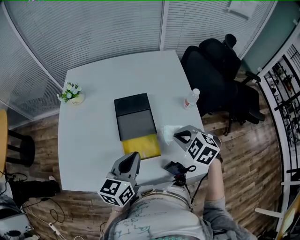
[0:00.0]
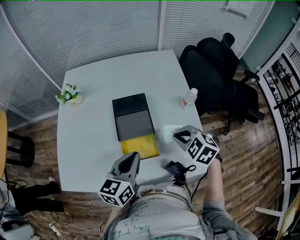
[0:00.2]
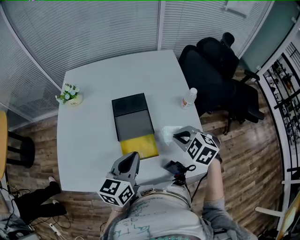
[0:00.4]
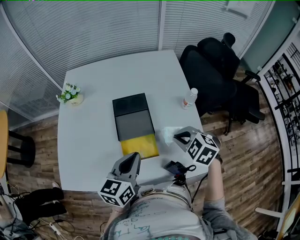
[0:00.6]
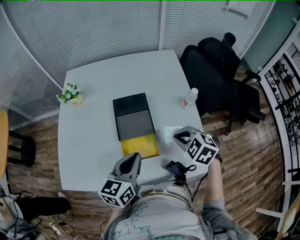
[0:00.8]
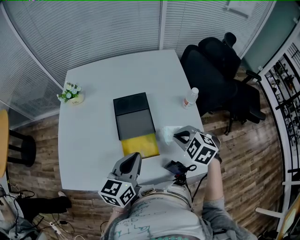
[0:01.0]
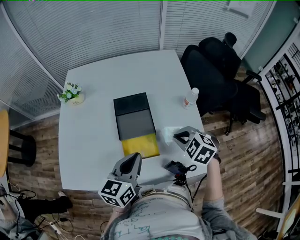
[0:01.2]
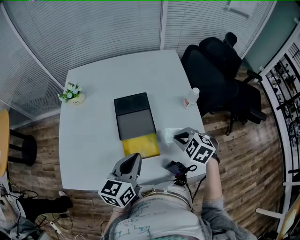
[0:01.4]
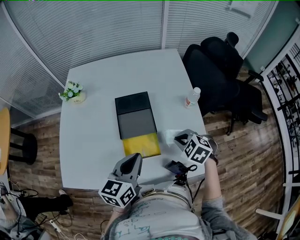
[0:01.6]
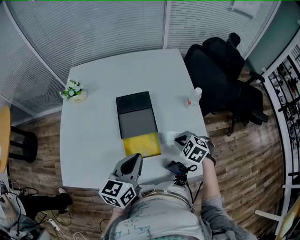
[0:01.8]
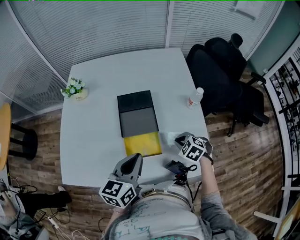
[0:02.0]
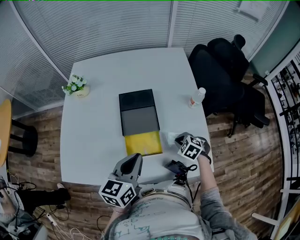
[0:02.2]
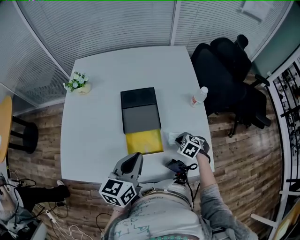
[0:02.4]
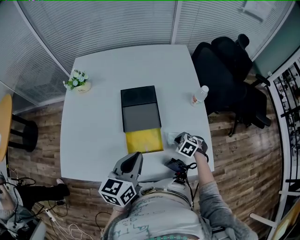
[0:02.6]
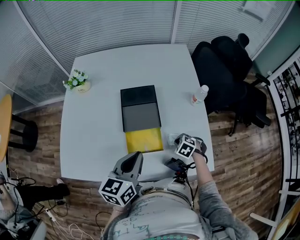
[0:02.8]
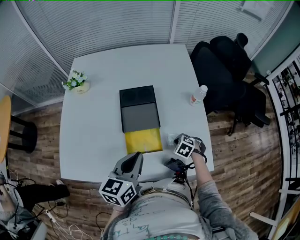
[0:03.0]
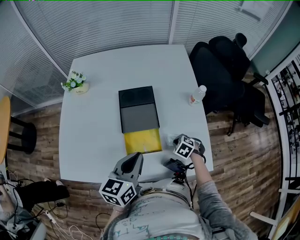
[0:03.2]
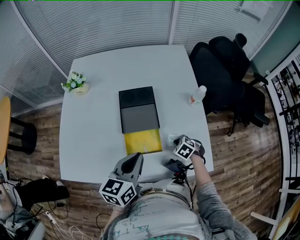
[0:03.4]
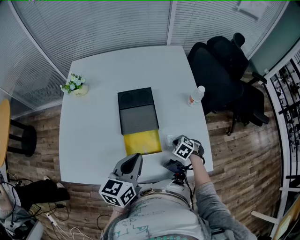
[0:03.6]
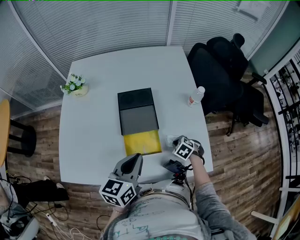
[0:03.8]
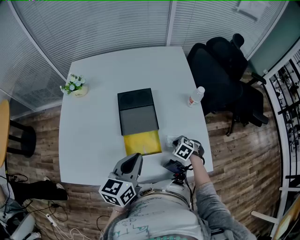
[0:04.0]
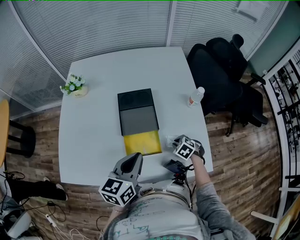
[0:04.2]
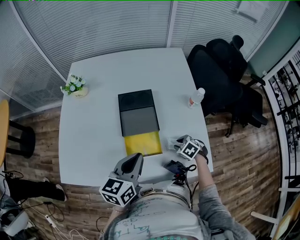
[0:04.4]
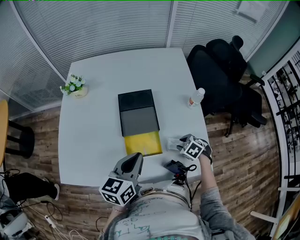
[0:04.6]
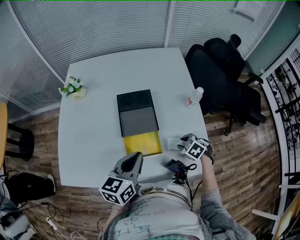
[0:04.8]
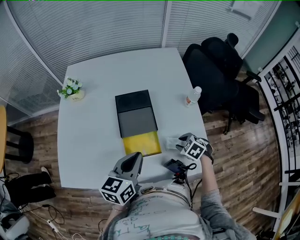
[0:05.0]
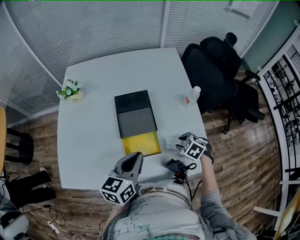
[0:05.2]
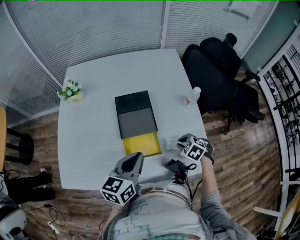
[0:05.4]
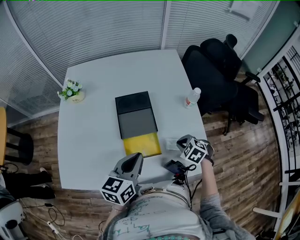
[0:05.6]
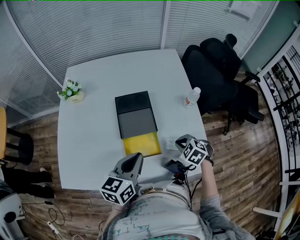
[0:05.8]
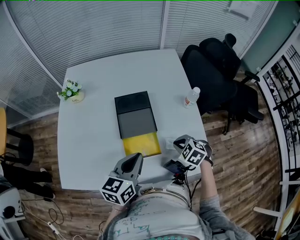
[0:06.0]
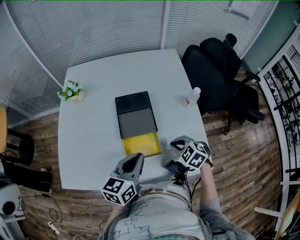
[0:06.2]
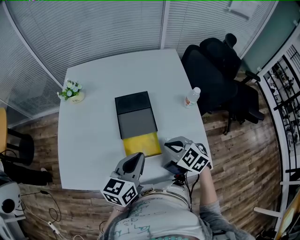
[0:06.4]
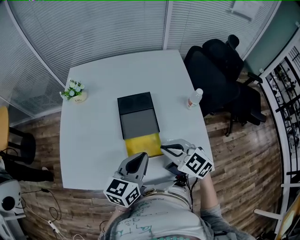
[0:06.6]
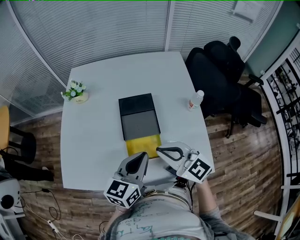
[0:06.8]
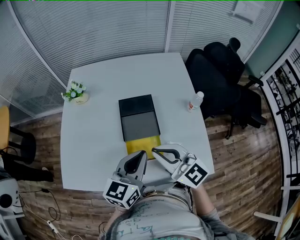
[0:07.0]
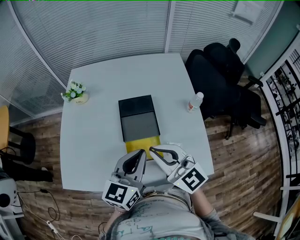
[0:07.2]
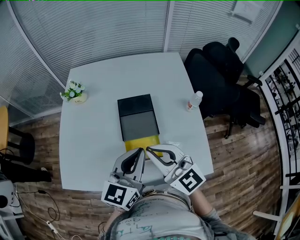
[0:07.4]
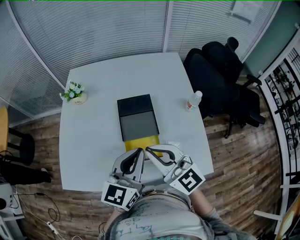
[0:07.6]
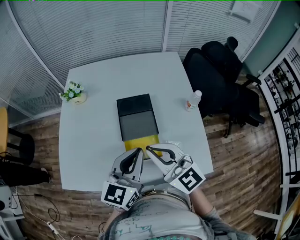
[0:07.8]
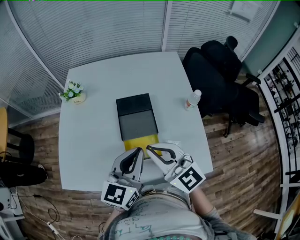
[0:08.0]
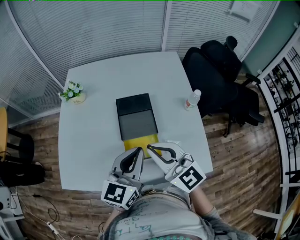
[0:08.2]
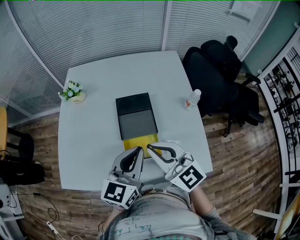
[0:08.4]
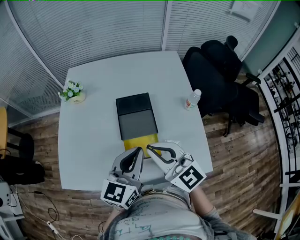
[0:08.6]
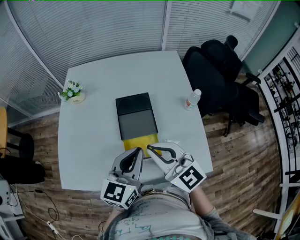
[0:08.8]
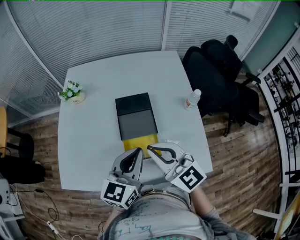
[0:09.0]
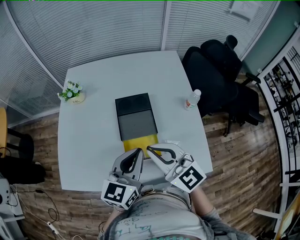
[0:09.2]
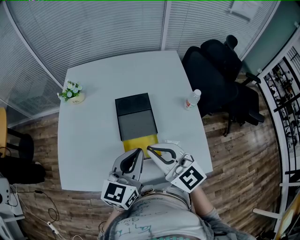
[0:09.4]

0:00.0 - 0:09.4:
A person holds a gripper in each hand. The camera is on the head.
0:00.0 - 0:01.6: The right gripper travels downward by some 5 cm.
0:01.6 - 0:03.2: The right gripper moves downward, roughly 15 cm.
0:03.2 - 0:04.8: The right gripper is displaced upward by approximately 5 cm, and opens its fingers.
0:04.8 - 0:06.2: The right gripper is displaced upward and to the left by about 10 cm, and closes up.
0:06.2 - 0:07.8: The left gripper moves upward, approximately 10 cm. Meanwhile the right gripper shifts about 25 cm upward and to the left, and tilts its fingers some 50 degrees upward.
0:07.8 - 0:09.4: There are only small adjustments of the grippers.

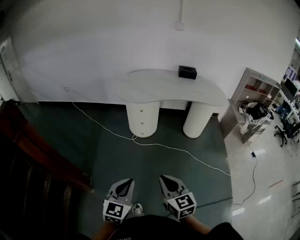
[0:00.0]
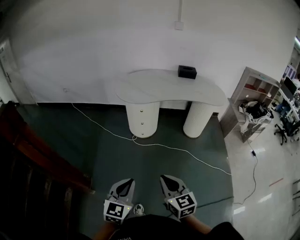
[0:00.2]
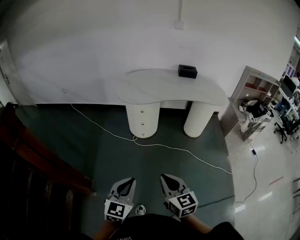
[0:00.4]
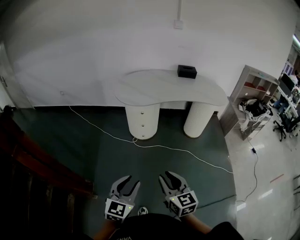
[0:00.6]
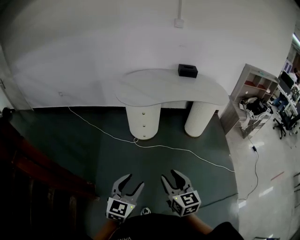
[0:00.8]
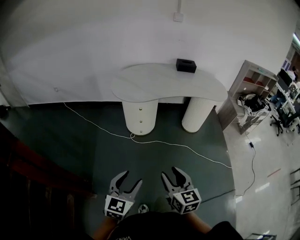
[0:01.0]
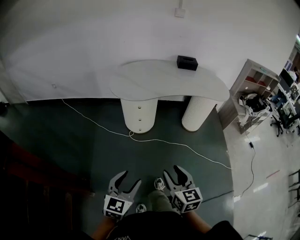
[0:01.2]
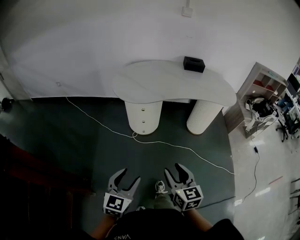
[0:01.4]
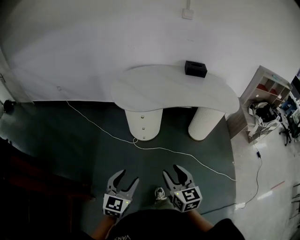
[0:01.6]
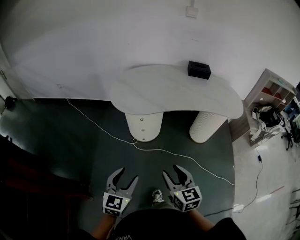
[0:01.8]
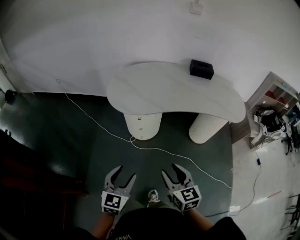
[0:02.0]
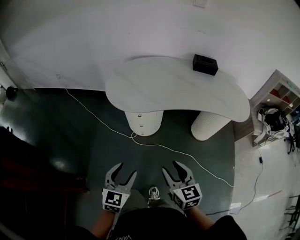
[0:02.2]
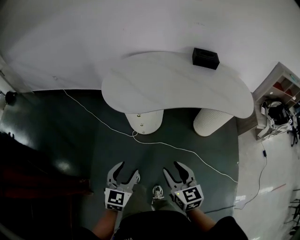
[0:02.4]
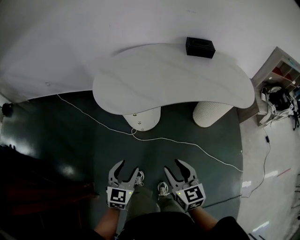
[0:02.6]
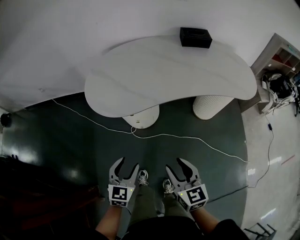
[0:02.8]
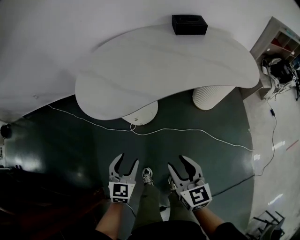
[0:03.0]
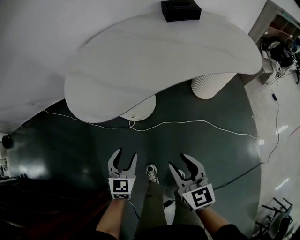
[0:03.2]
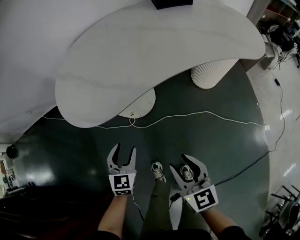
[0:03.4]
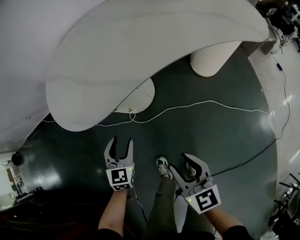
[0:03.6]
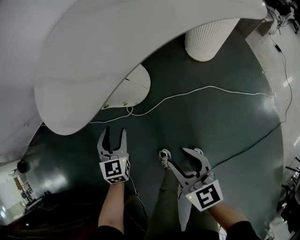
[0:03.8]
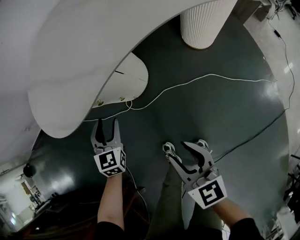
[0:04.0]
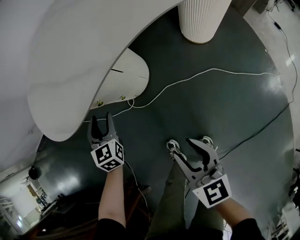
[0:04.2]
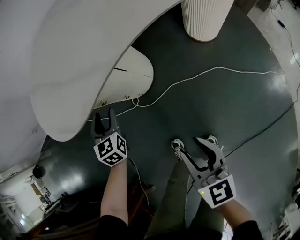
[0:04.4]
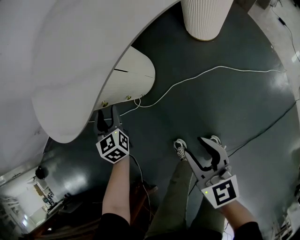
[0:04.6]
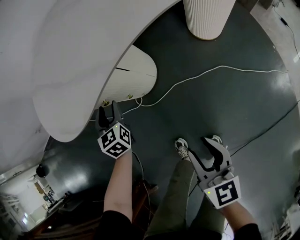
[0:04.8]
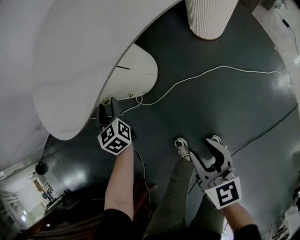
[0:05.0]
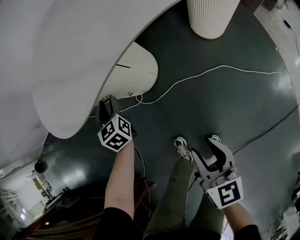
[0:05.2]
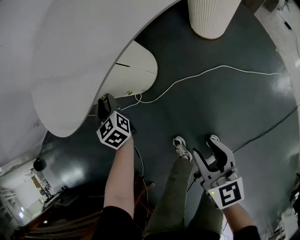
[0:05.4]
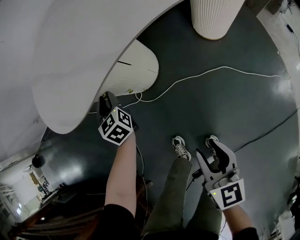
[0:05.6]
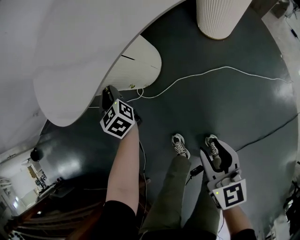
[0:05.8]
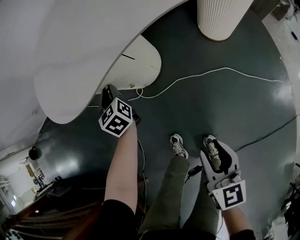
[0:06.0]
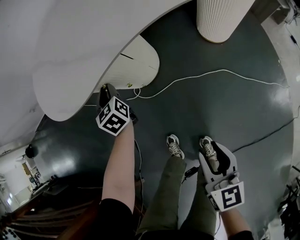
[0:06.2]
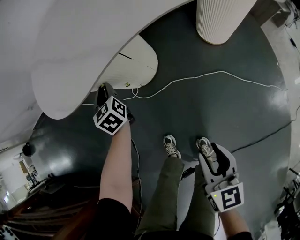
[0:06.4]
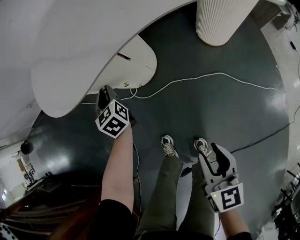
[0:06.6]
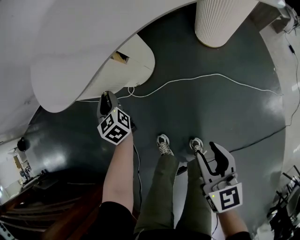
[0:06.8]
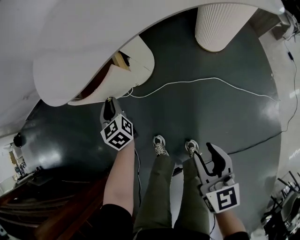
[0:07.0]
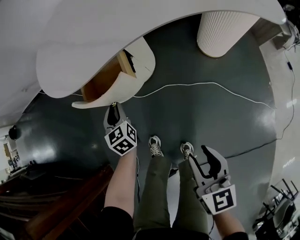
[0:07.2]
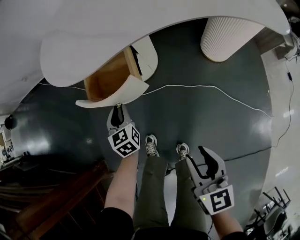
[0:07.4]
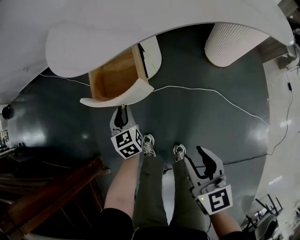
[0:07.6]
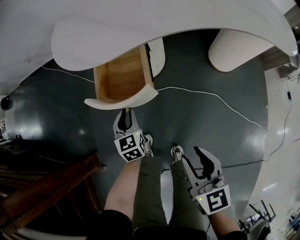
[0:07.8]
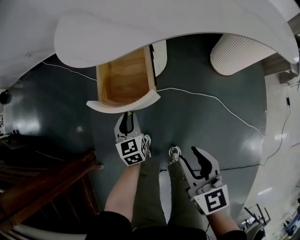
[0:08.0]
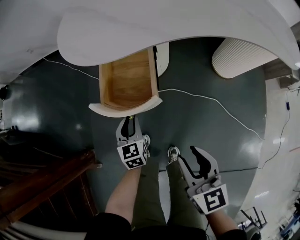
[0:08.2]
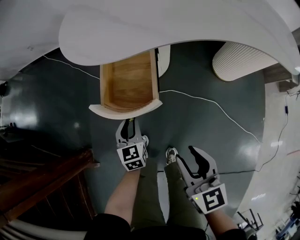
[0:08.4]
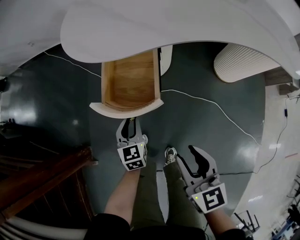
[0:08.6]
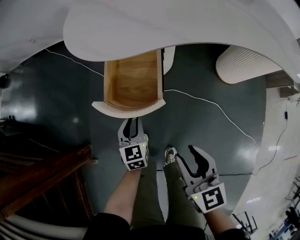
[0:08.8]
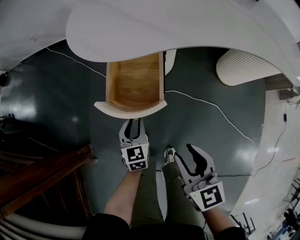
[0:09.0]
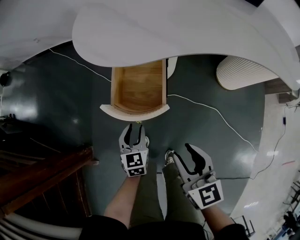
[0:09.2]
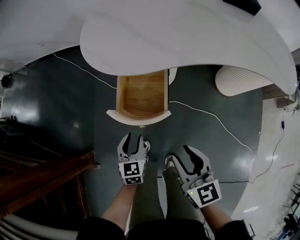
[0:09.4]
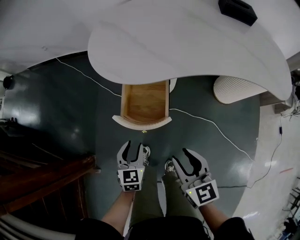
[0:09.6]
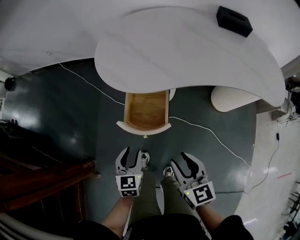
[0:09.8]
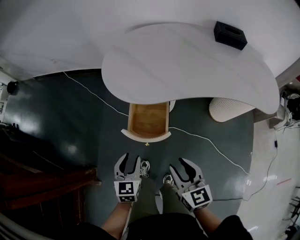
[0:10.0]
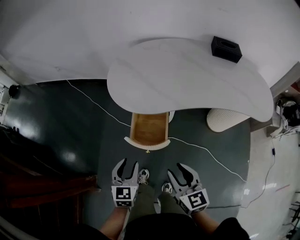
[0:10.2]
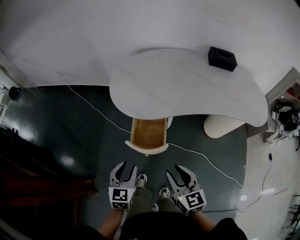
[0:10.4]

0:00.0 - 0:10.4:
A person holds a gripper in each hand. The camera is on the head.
0:00.0 - 0:01.4: Both grippers move forward, approximately 20 cm. The right gripper opens. Meanwhile the left gripper opens its fingers.
0:01.4 - 0:03.0: The left gripper is displaced forward and downward by roughly 40 cm. Meanwhile the right gripper goes roughly 30 cm forward.
0:03.0 - 0:04.4: The left gripper is displaced forward and downward by about 30 cm; the right gripper shifts about 20 cm downward.
0:04.4 - 0:06.0: The right gripper shifts by roughly 5 cm; the left gripper swivels some 20 degrees, and closes.
0:06.0 - 0:07.4: The left gripper is displaced backward by approximately 15 cm. Meanwhile the right gripper travels upward and backward by about 5 cm.
0:07.4 - 0:09.0: The left gripper moves backward, roughly 5 cm. The right gripper travels forward by roughly 5 cm.
0:09.0 - 0:10.4: The right gripper moves upward, roughly 15 cm; the left gripper is displaced upward by about 25 cm.

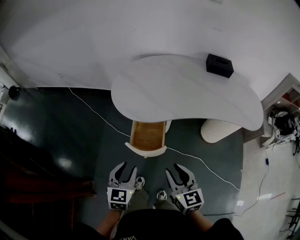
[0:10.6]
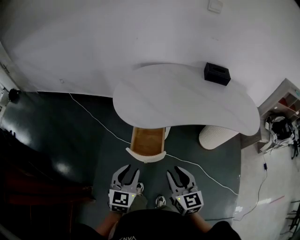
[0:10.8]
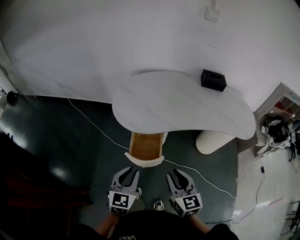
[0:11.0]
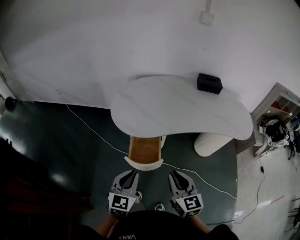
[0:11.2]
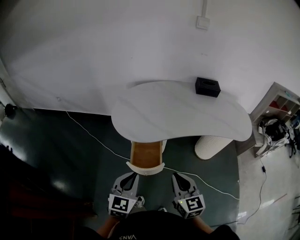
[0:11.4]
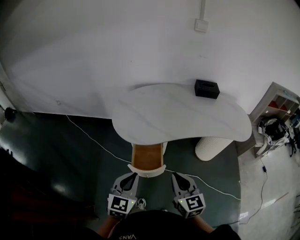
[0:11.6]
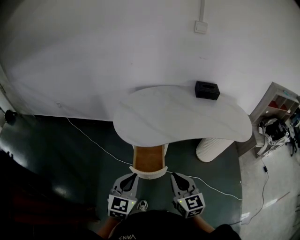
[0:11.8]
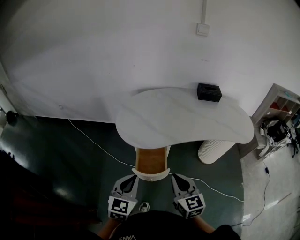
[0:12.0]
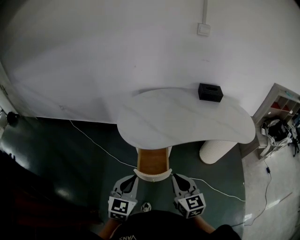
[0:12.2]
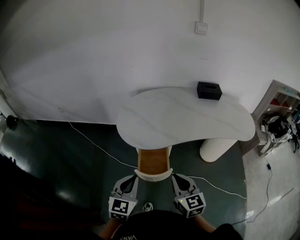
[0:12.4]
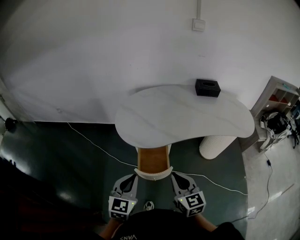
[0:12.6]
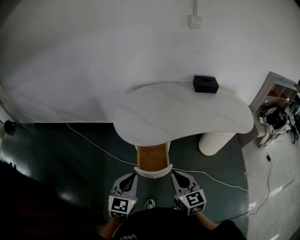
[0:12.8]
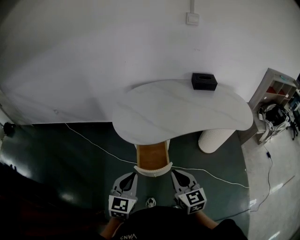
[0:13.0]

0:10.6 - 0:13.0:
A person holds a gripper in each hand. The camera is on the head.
0:10.6 - 0:11.8: The grippers both shift upward by about 10 cm. The left gripper closes up; the right gripper closes.
0:11.8 - 0:13.0: The grippers make only small movements.

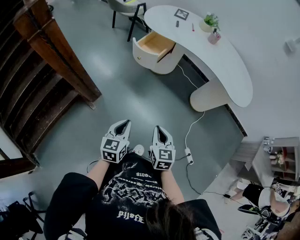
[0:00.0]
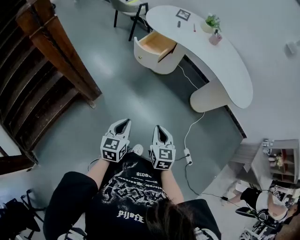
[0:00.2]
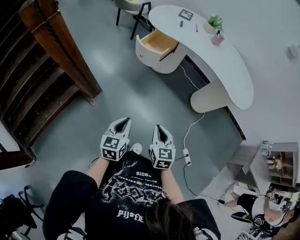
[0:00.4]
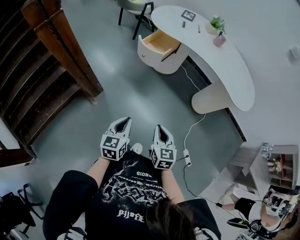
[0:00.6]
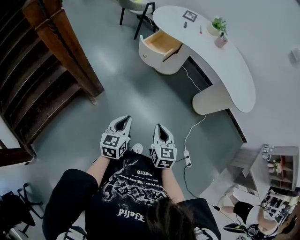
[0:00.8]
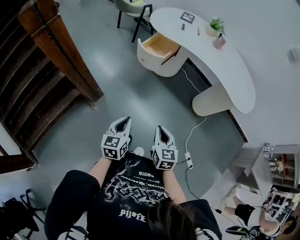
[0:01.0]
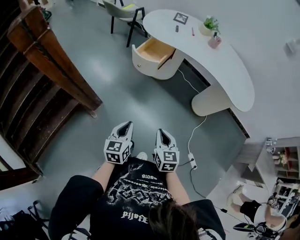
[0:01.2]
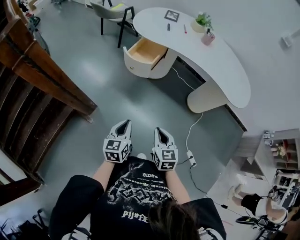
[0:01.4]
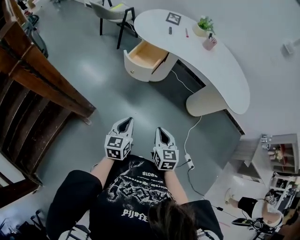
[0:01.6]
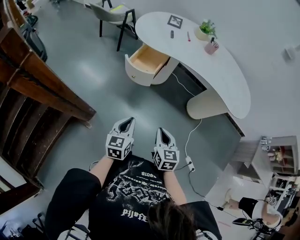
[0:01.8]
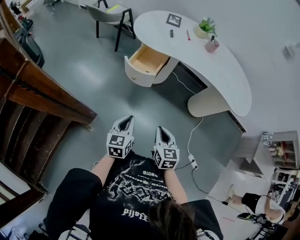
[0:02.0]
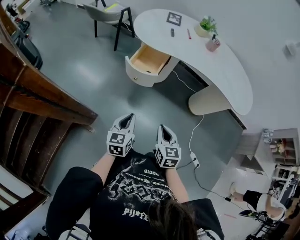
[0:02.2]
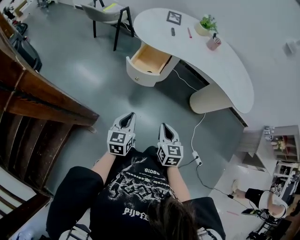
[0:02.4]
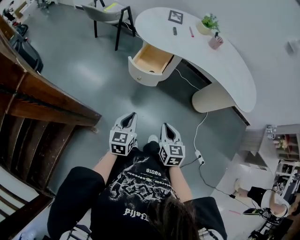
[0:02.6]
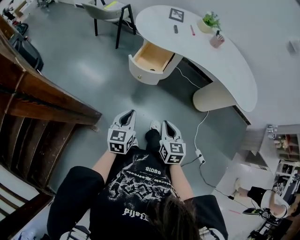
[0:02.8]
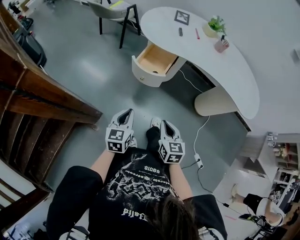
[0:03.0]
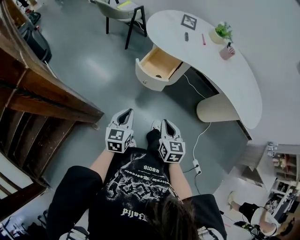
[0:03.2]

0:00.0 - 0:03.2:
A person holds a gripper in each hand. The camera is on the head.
0:00.0 - 0:01.6: The two grippers go roughly 15 cm forward.
0:01.6 - 0:03.2: Both grippers move forward and to the left, approximately 20 cm.